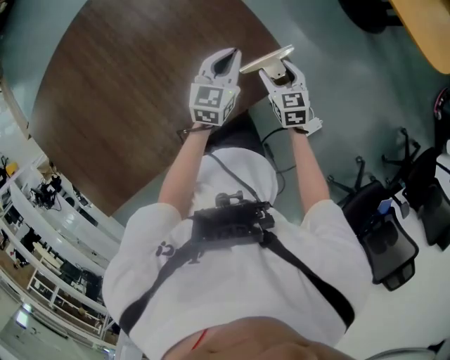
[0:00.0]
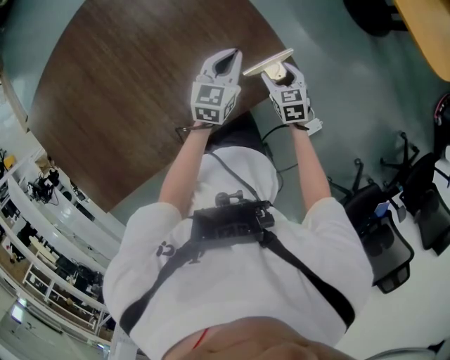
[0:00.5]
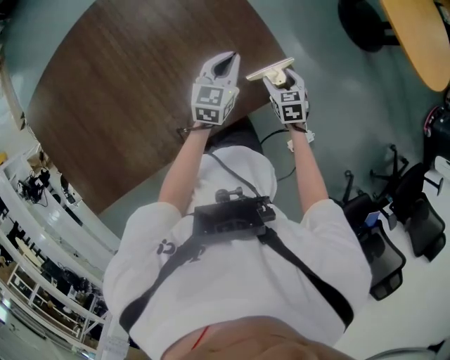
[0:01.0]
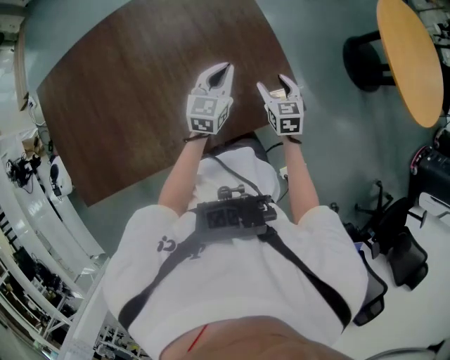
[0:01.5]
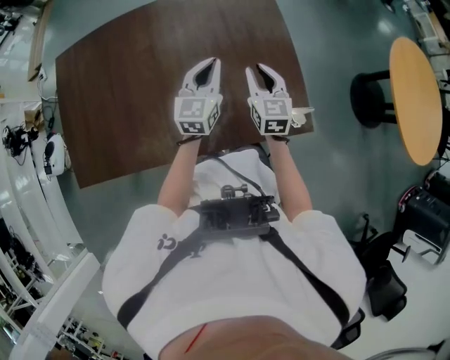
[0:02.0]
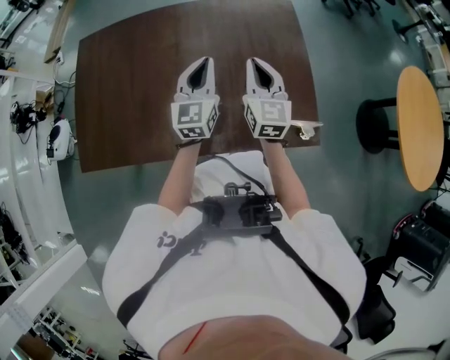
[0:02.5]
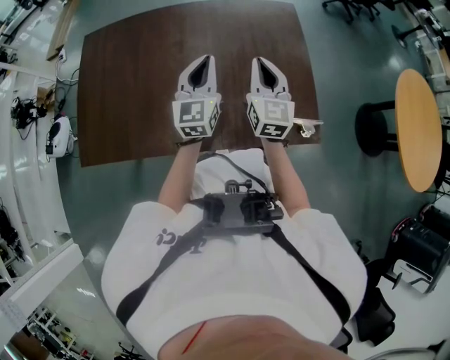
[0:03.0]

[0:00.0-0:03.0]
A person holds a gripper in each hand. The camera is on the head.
0:00.0 to 0:01.5: The right gripper heads forward, covering approximately 5 cm. Meanwhile the left gripper travels to the left by about 5 cm.
0:01.5 to 0:03.0: The left gripper goes about 20 cm to the left and upward, and turns by roughly 40 degrees, while the right gripper shifts about 25 cm upward, to the left and forward, angles its fingers upward, by some 30 degrees, and closes up.

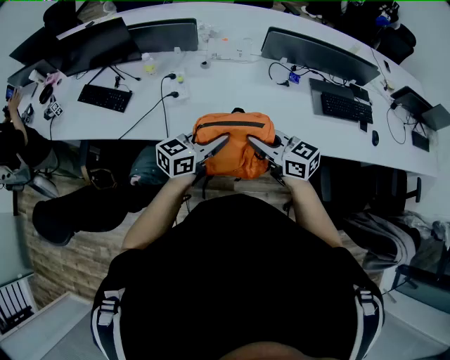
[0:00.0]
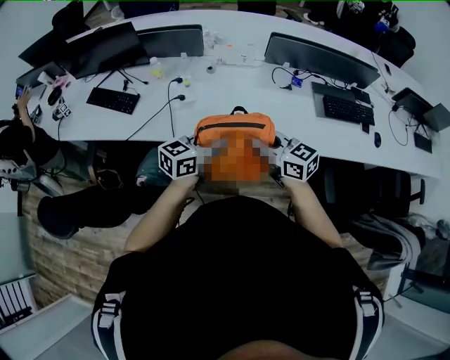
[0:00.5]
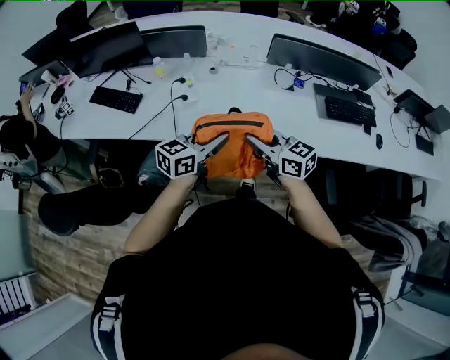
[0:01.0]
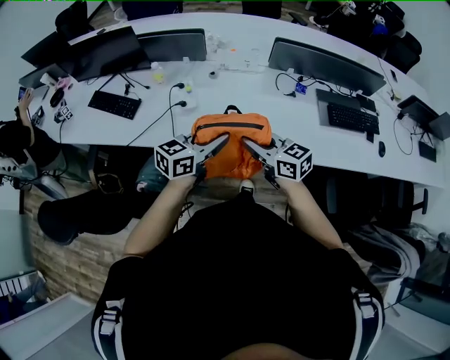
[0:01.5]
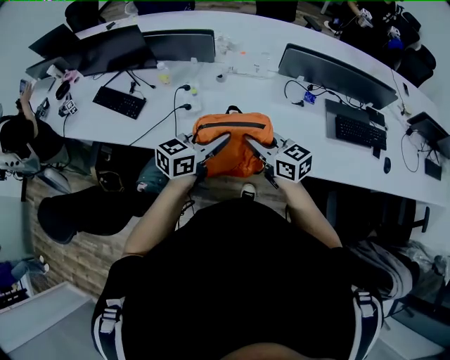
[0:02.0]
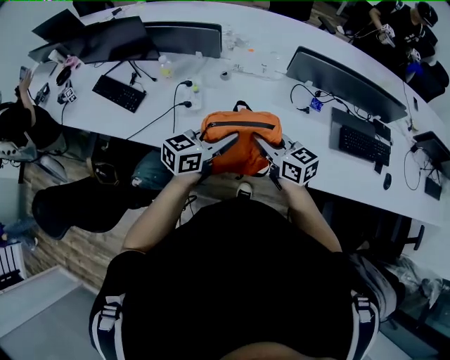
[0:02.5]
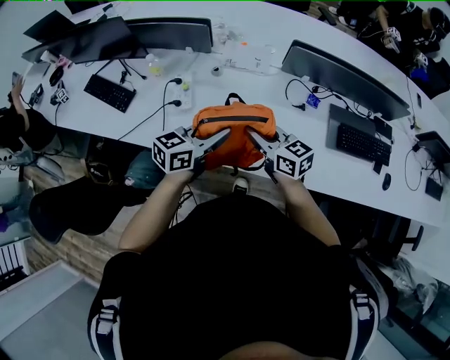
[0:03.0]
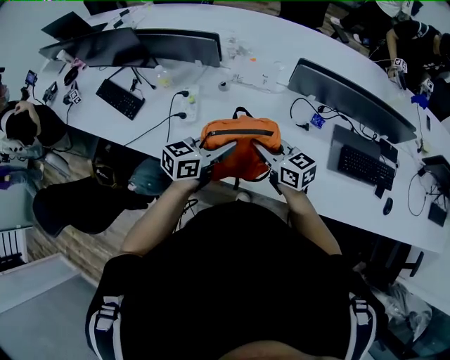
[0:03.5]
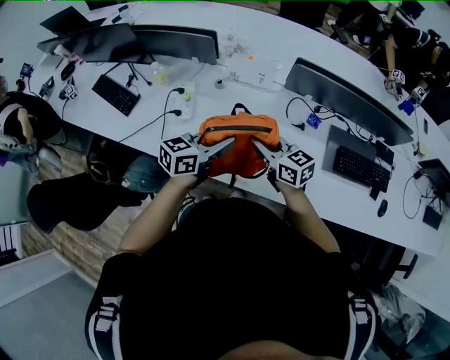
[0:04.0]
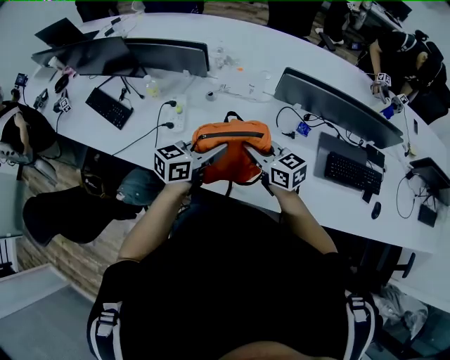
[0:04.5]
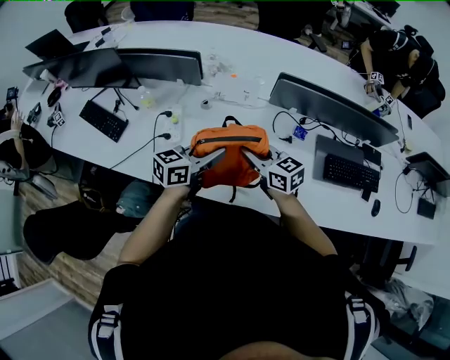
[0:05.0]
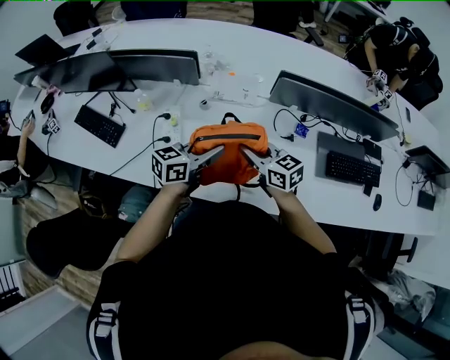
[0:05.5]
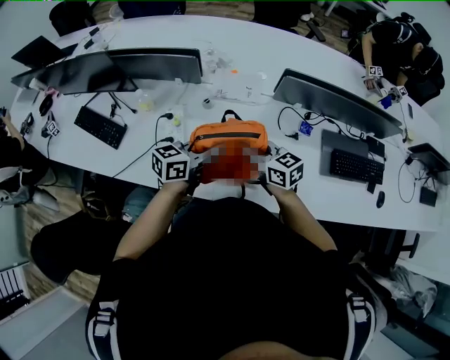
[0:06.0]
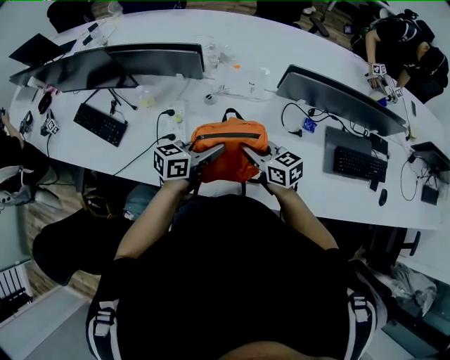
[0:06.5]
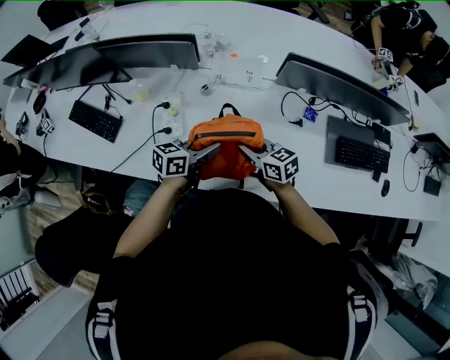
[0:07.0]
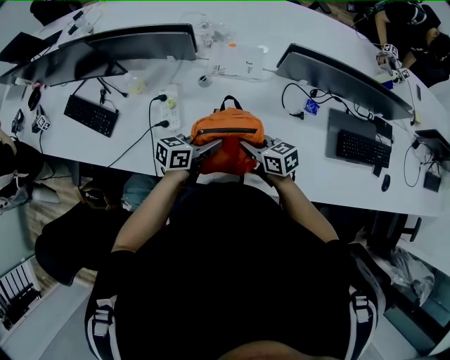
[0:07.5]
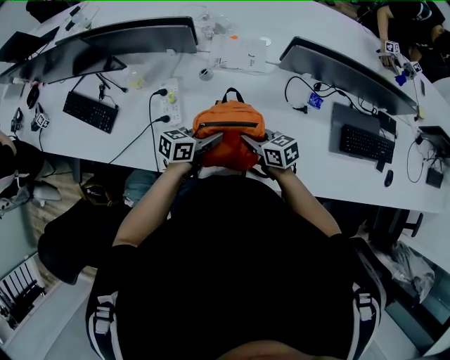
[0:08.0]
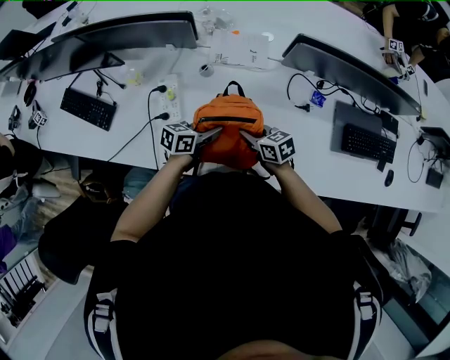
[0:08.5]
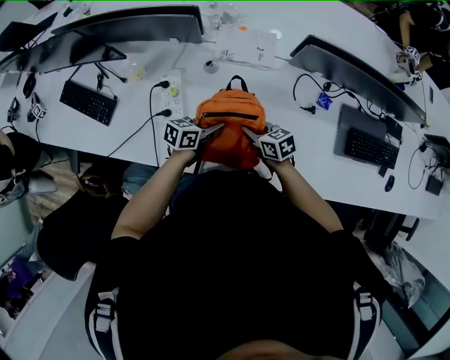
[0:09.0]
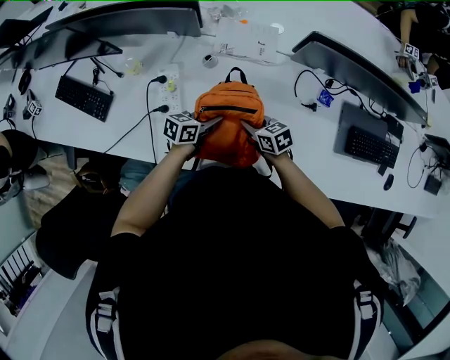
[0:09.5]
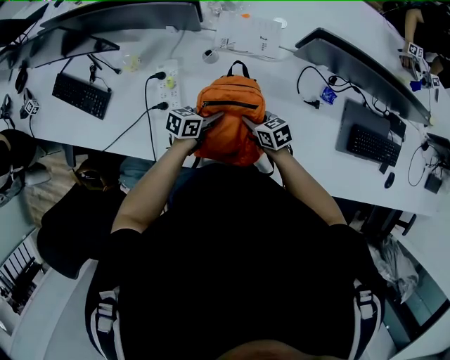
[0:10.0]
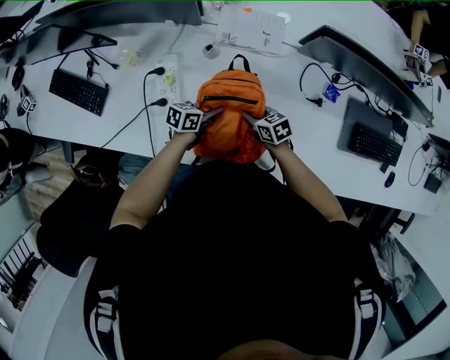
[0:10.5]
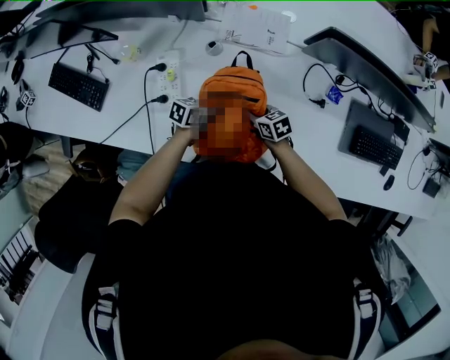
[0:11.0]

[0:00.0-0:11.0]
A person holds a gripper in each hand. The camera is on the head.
0:00.0 to 0:02.0: Both grippers move forward, some 10 cm.
0:02.0 to 0:03.5: The grippers both shift forward and to the right by some 15 cm.
0:03.5 to 0:05.5: Both grippers travel together forward, about 5 cm.
0:05.5 to 0:07.5: Both grippers travel together downward, about 10 cm.
0:07.5 to 0:09.0: Both grippers travel together downward, approximately 10 cm.
0:09.0 to 0:11.0: The two grippers go about 10 cm downward.

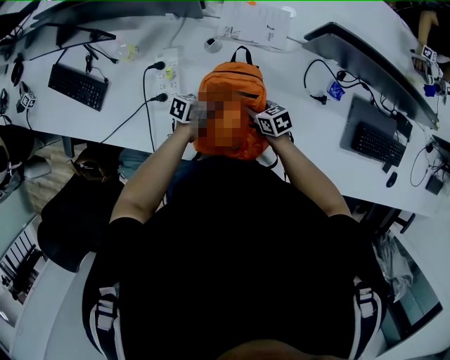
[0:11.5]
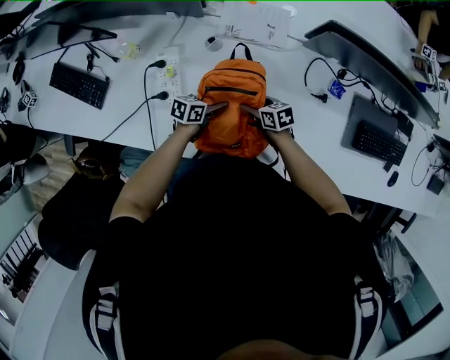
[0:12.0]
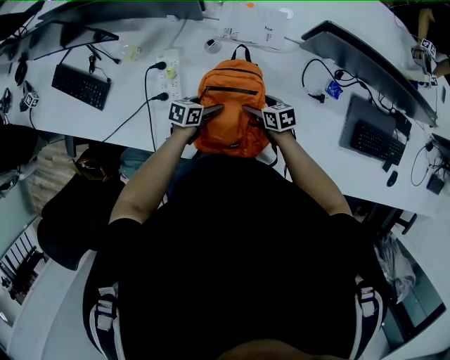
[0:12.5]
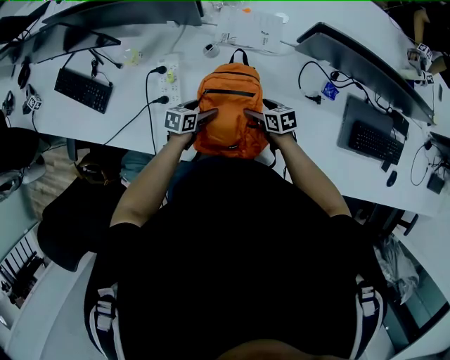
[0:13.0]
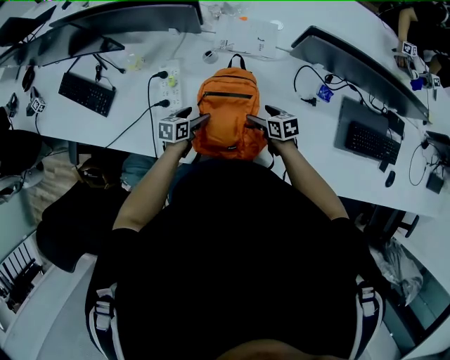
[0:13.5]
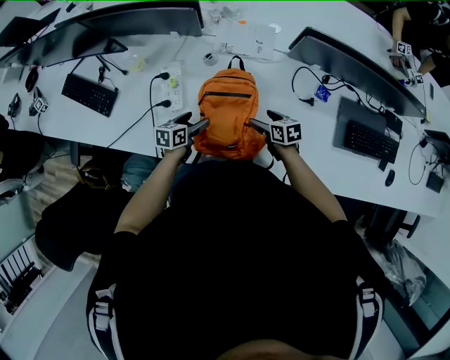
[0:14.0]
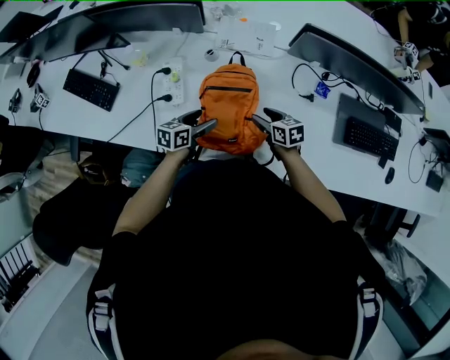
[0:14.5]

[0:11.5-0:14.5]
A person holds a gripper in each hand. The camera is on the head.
0:11.5 to 0:13.0: The right gripper opens its fingers; the left gripper shifts by some 5 cm, and opens its fingers.
0:13.0 to 0:14.5: The left gripper moves upward and backward, about 10 cm, while the right gripper goes some 10 cm upward, and closes up.

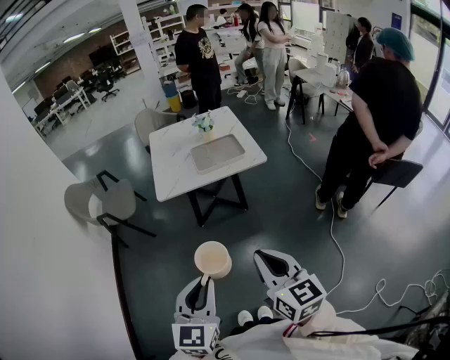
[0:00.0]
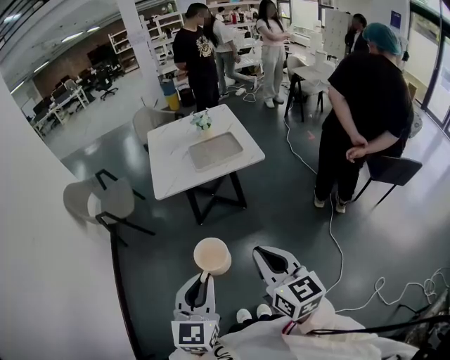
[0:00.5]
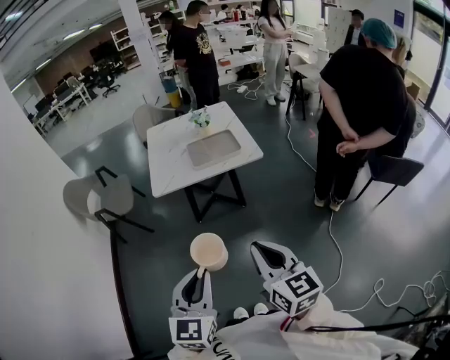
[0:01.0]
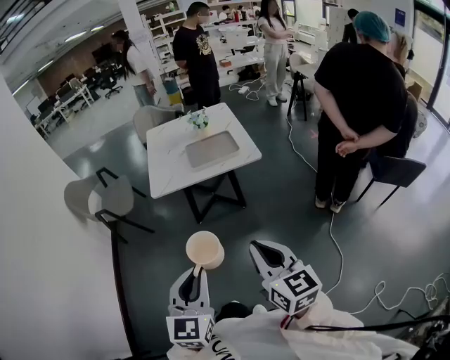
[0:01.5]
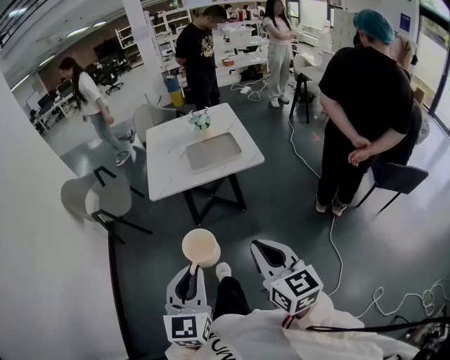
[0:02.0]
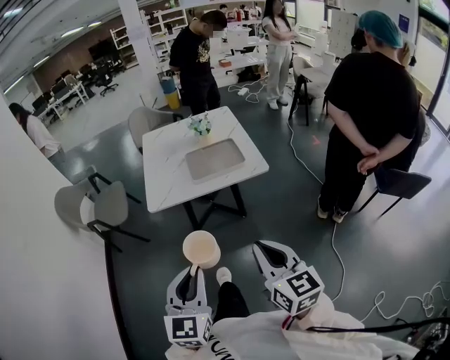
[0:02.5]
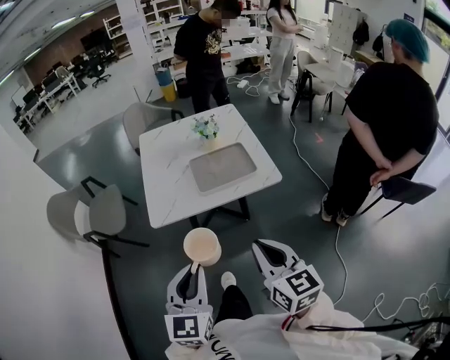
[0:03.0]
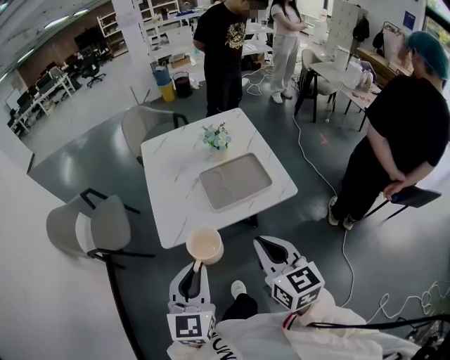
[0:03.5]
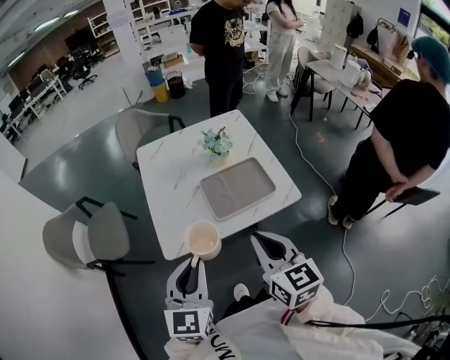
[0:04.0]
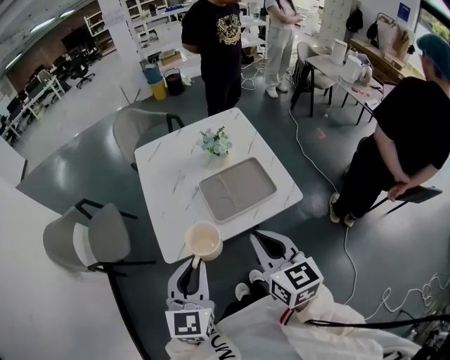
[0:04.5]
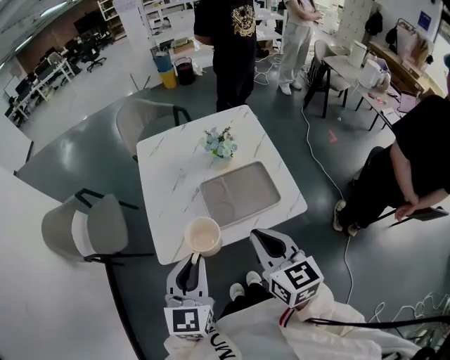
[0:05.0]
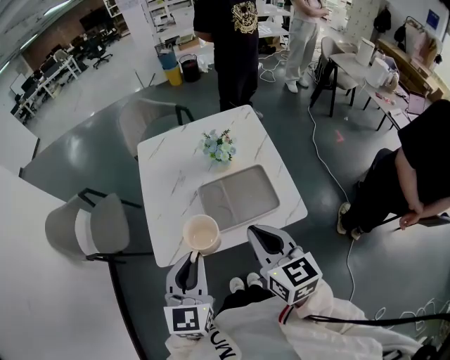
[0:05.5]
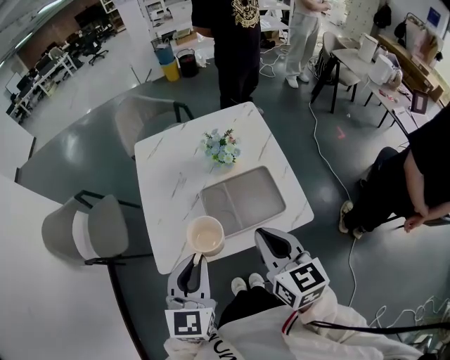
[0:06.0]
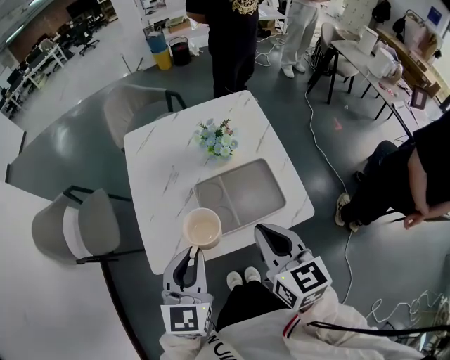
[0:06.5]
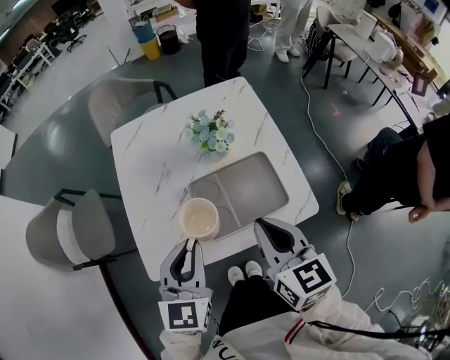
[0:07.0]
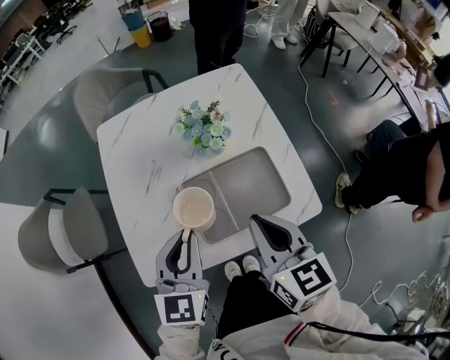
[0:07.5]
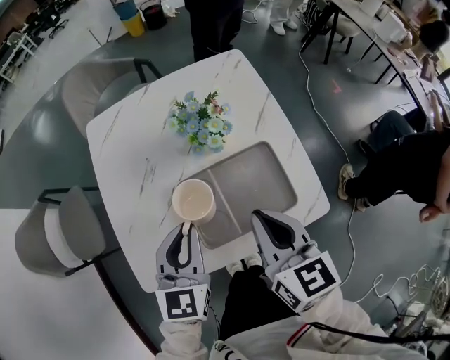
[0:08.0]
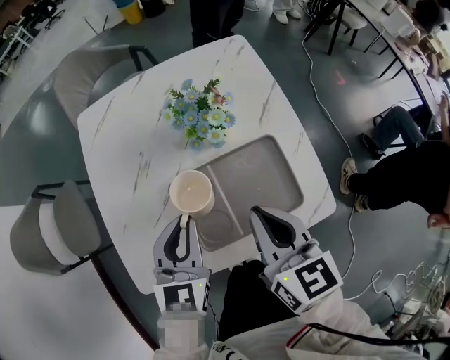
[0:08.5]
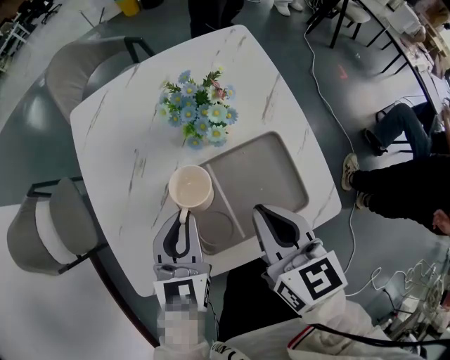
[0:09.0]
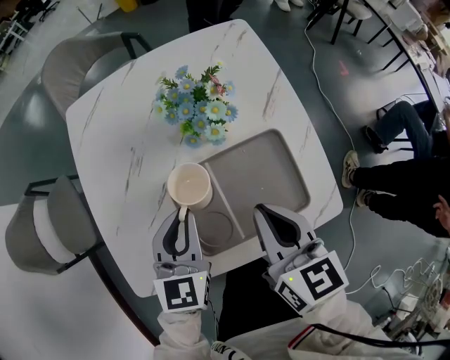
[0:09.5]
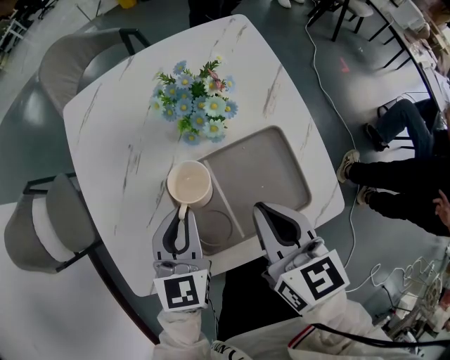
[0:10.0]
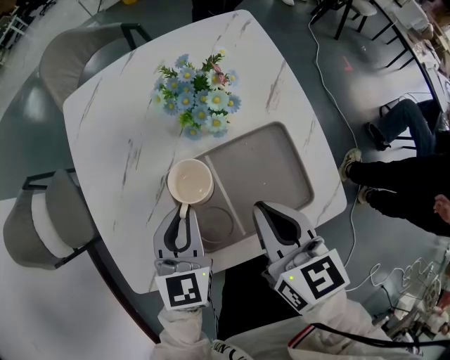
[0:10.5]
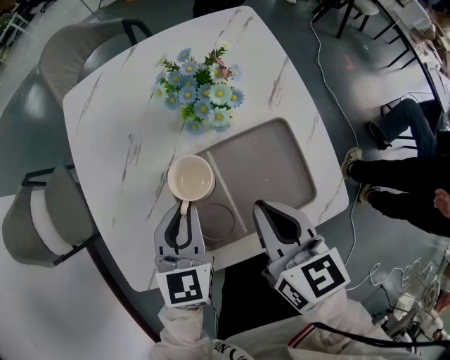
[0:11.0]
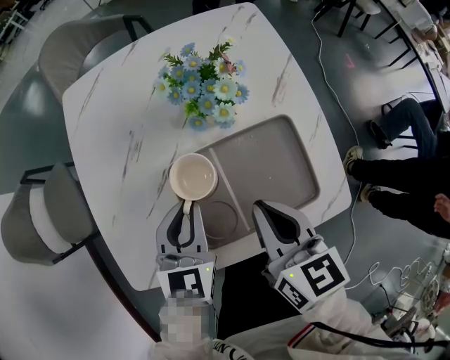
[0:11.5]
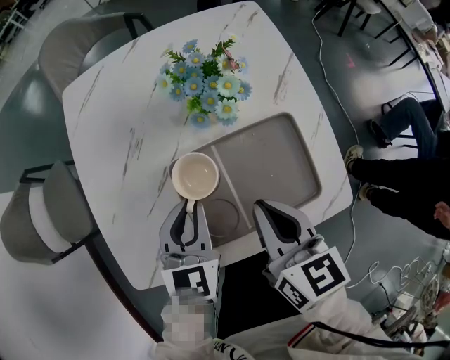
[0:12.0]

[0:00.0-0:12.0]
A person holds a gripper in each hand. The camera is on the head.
0:00.0 to 0:02.0: The left gripper goes about 5 cm forward, while the right gripper moves to the right and forward, about 10 cm.
0:02.0 to 0:04.0: The pair of grippers is taken forward, some 40 cm.
0:04.0 to 0:06.0: The grippers both shift forward and to the right by about 15 cm.
0:06.0 to 0:08.0: Both grippers travel together forward and downward, approximately 20 cm.
0:08.0 to 0:10.0: Both grippers move downward, about 10 cm.
0:10.0 to 0:12.0: The grippers move only a little.
